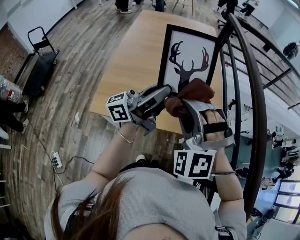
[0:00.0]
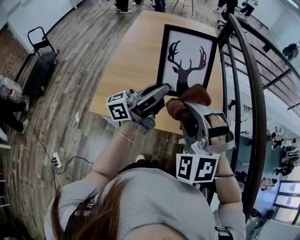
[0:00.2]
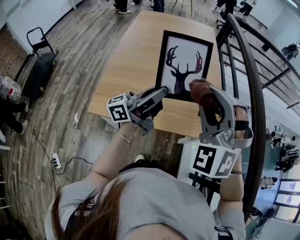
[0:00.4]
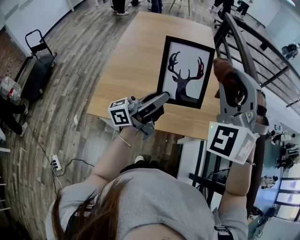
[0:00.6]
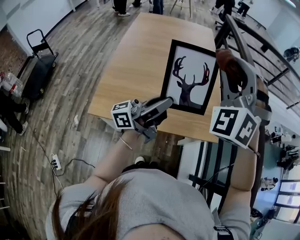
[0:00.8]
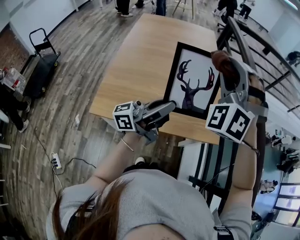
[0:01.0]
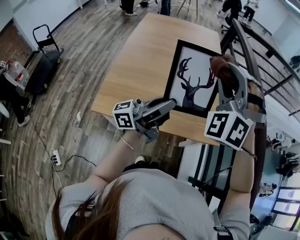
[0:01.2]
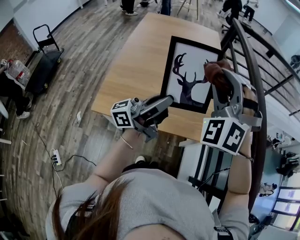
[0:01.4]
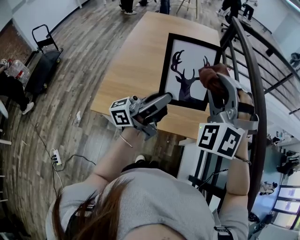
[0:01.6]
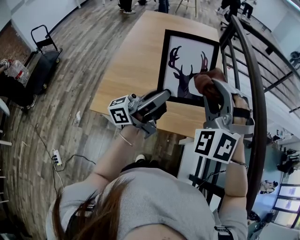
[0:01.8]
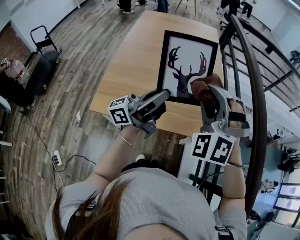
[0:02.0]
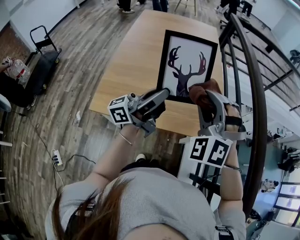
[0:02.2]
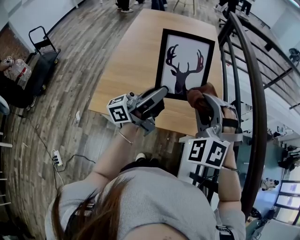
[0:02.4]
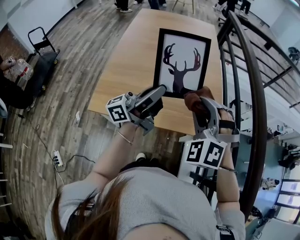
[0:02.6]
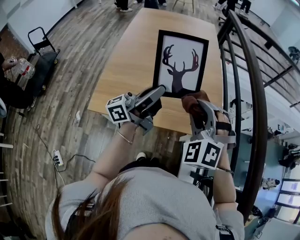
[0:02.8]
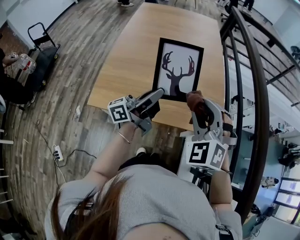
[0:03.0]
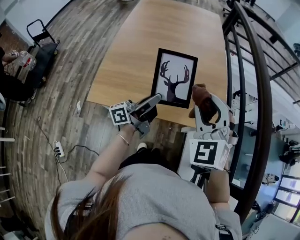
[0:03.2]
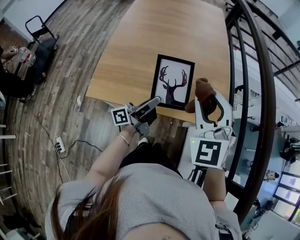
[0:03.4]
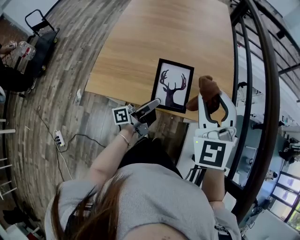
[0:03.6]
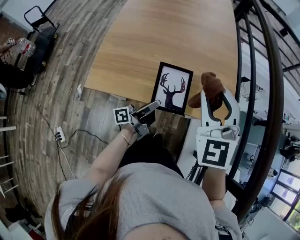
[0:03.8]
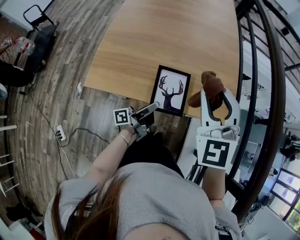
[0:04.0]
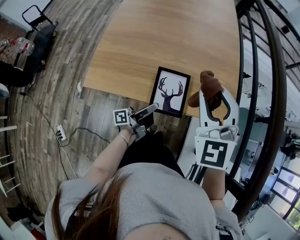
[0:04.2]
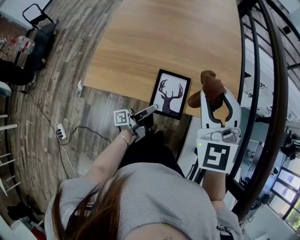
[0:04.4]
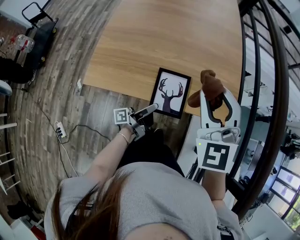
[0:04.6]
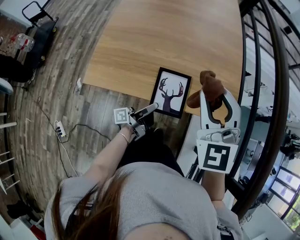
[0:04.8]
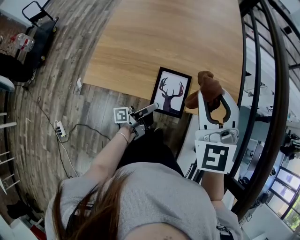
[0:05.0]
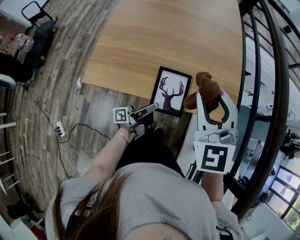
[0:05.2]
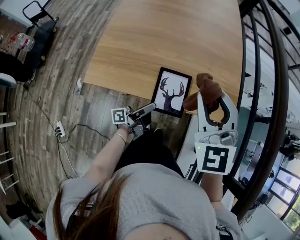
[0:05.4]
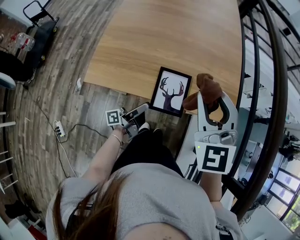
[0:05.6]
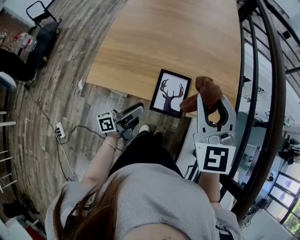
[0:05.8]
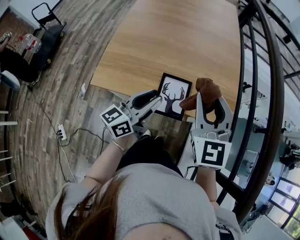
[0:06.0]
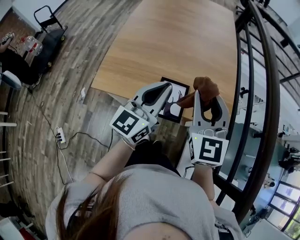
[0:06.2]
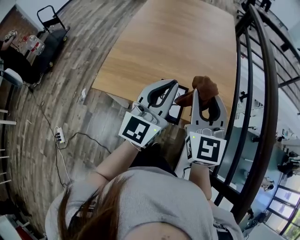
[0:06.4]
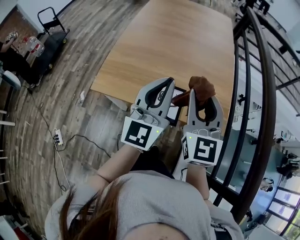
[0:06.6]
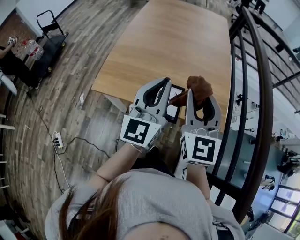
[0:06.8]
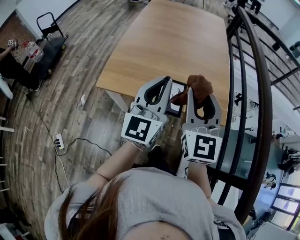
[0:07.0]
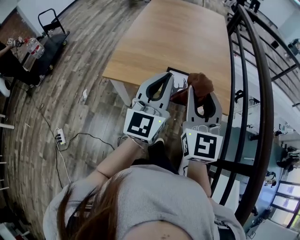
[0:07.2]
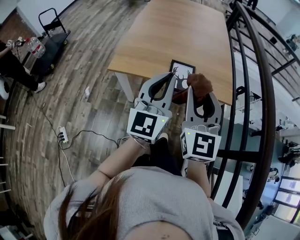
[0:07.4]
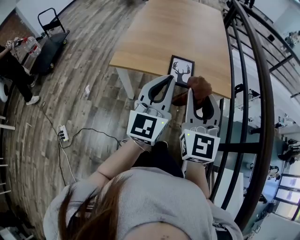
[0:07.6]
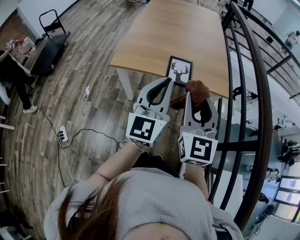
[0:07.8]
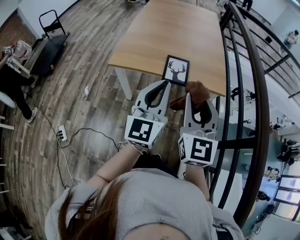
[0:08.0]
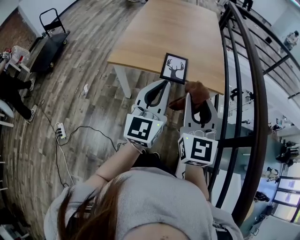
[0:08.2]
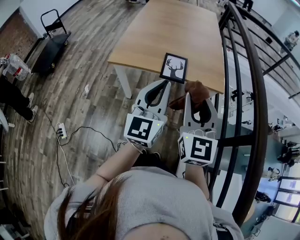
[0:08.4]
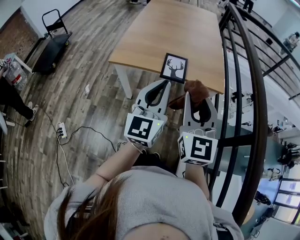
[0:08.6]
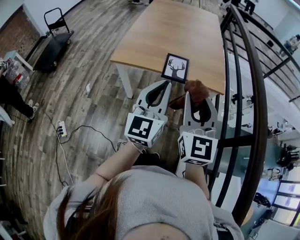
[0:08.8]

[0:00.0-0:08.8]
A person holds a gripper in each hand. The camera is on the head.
0:00.0 to 0:01.4: The right gripper moves forward and upward, approximately 15 cm.
0:01.4 to 0:03.0: The right gripper goes some 15 cm downward and backward, and swivels some 20 degrees; the left gripper travels downward by some 5 cm.
0:03.0 to 0:04.4: The left gripper is displaced downward by some 25 cm, and swivels roughly 40 degrees. The right gripper turns by some 20 degrees.
0:04.4 to 0:05.8: The right gripper rotates some 20 degrees; the left gripper travels to the left by some 5 cm, swivels roughly 20 degrees, and opens its fingers.
0:05.8 to 0:07.4: The right gripper heads backward, covering approximately 20 cm, while the left gripper goes approximately 30 cm upward and backward, rolls clockwise, seen from behind, by approximately 70 degrees, and closes its fingers.
0:07.4 to 0:08.8: The grippers both shift backward by approximately 10 cm.

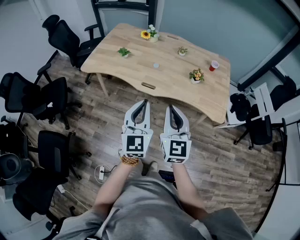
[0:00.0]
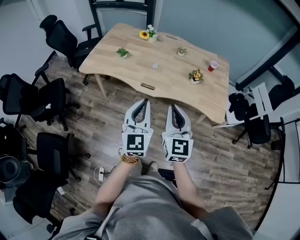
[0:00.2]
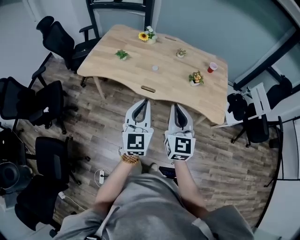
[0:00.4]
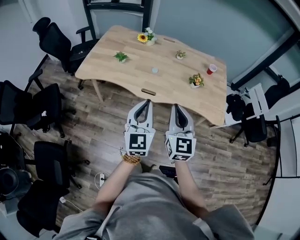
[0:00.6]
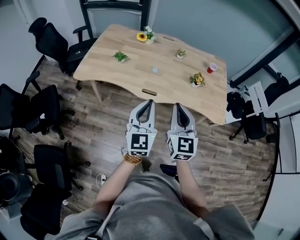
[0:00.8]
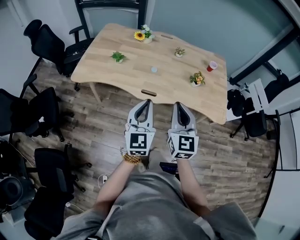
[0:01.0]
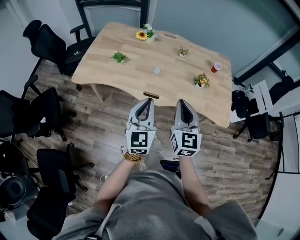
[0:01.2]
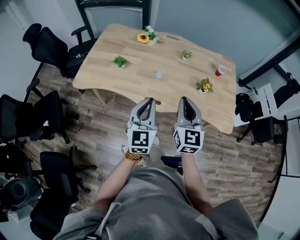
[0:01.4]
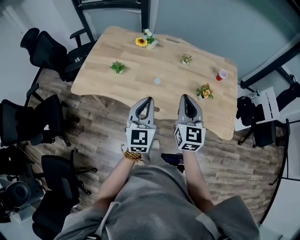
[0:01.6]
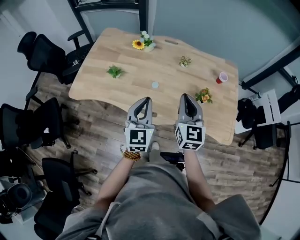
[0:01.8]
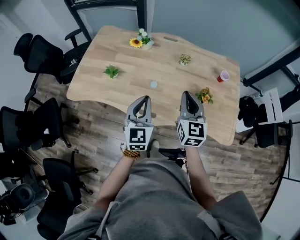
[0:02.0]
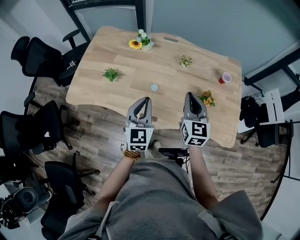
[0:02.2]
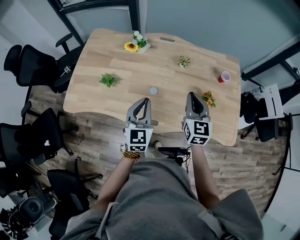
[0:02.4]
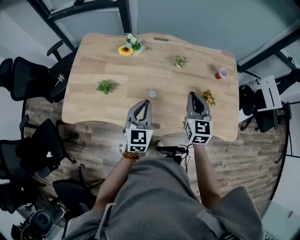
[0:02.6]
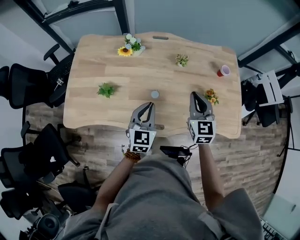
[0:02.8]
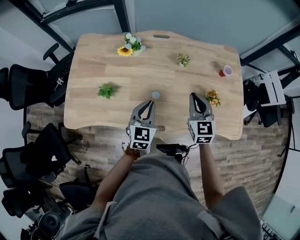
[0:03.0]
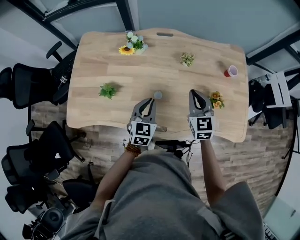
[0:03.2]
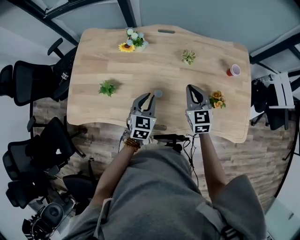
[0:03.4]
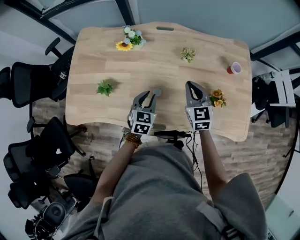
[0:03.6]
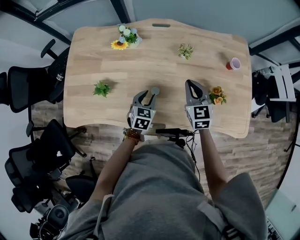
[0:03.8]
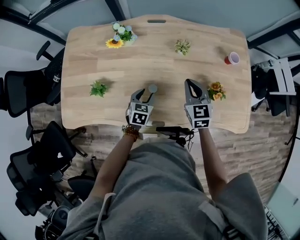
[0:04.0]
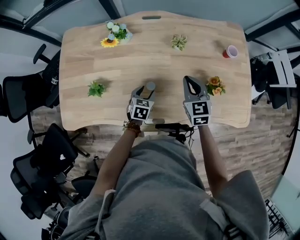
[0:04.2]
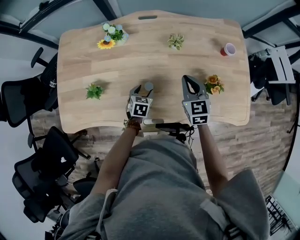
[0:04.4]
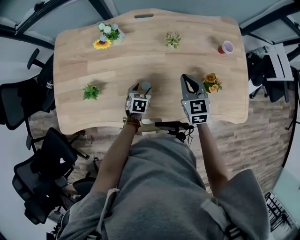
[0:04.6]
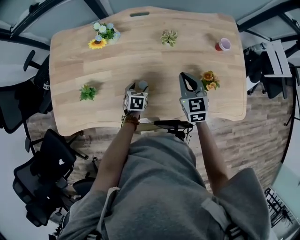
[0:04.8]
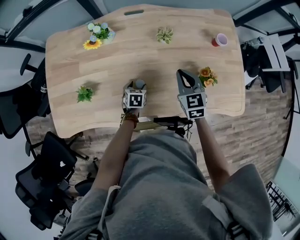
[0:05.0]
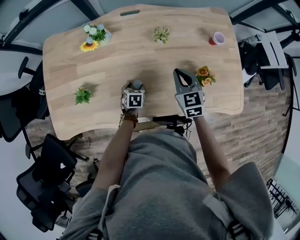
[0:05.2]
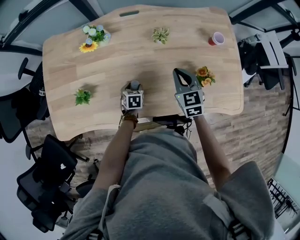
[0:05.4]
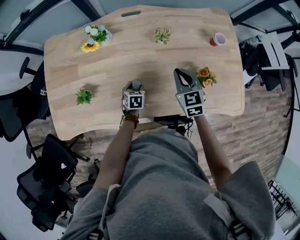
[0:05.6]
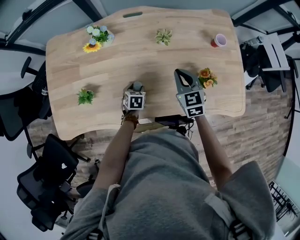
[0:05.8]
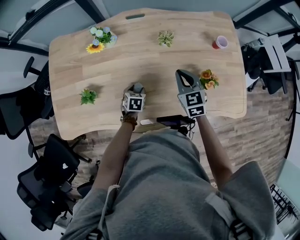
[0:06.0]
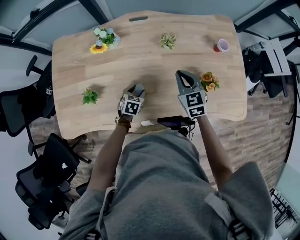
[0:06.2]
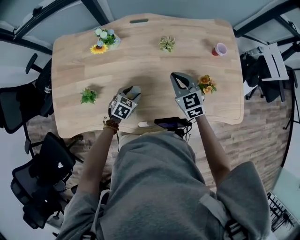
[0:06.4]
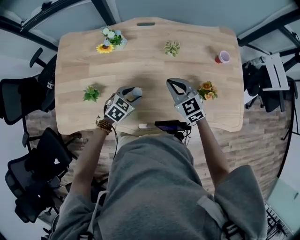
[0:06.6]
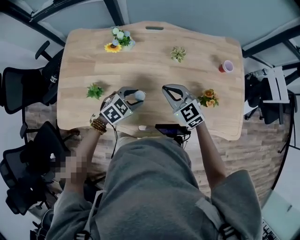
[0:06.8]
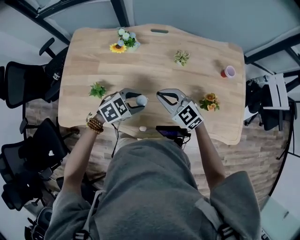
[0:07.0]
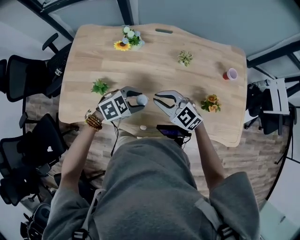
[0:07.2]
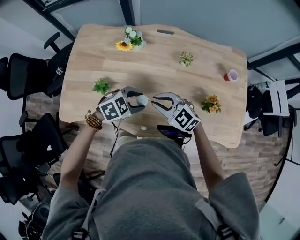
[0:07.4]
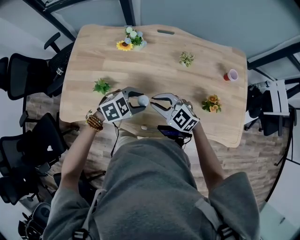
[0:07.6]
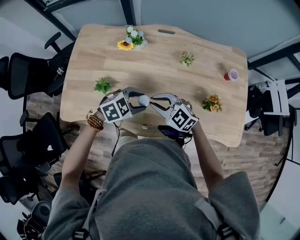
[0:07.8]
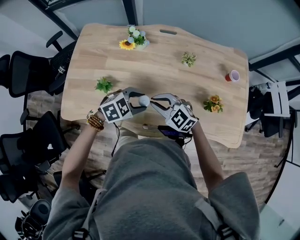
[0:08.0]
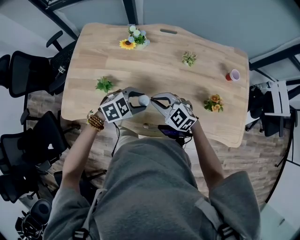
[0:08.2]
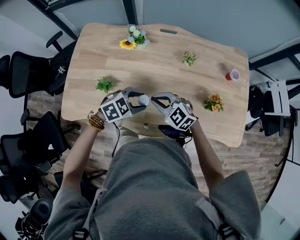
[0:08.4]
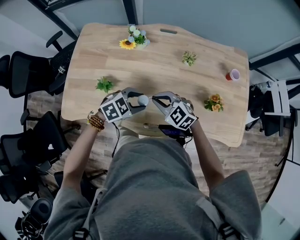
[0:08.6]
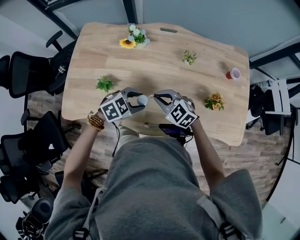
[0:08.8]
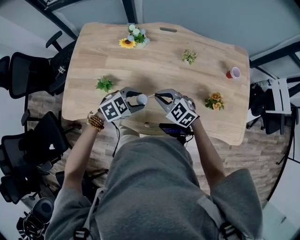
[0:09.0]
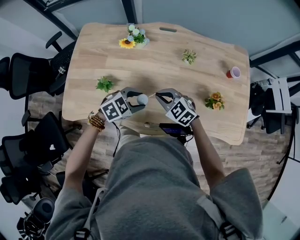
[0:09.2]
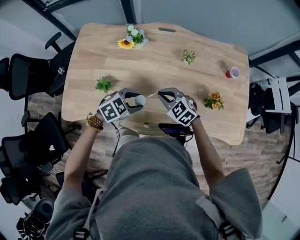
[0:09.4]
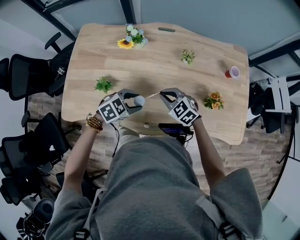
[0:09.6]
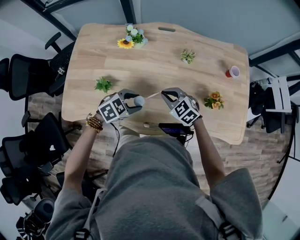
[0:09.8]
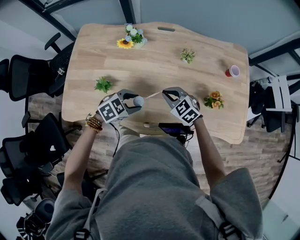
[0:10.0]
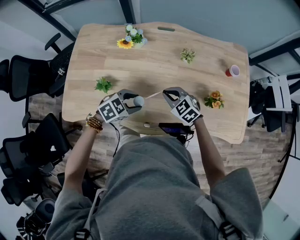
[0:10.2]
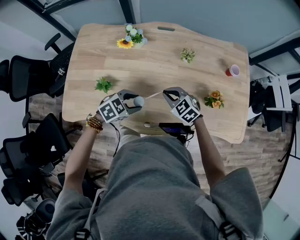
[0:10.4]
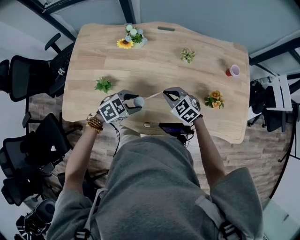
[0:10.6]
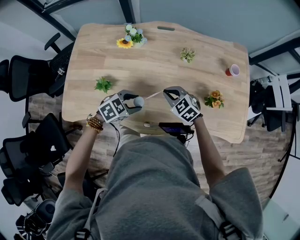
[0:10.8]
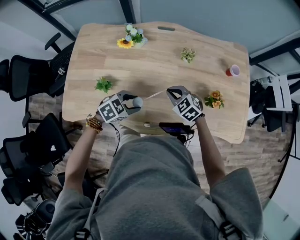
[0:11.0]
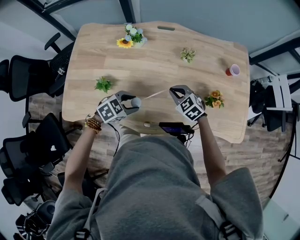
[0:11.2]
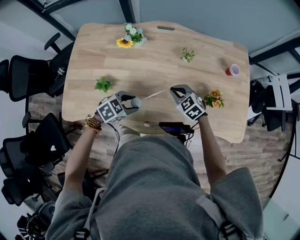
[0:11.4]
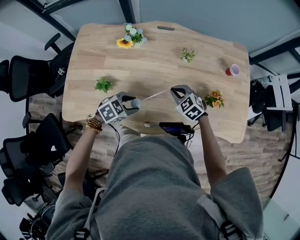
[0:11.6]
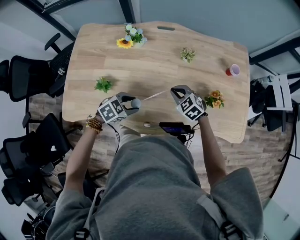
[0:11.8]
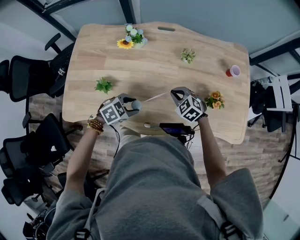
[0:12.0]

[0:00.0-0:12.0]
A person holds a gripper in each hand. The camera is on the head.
0:00.0 to 0:01.6: Both grippers travel together forward, approximately 25 cm.
0:01.6 to 0:03.0: The two grippers go some 25 cm forward and downward. The left gripper turns by about 30 degrees.
0:03.0 to 0:04.4: The right gripper goes some 10 cm downward and forward. The left gripper travels downward by about 20 cm, tips its fingers downward by approximately 30 degrees, and opens its fingers.
0:04.4 to 0:06.0: The grippers stay close to where they were, moving slightly.
0:06.0 to 0:07.6: The left gripper travels upward by some 20 cm, and rotates around the line of its fingers by about 40 degrees, clockwise from behind. The right gripper moves about 20 cm, and turns by about 50 degrees.
0:07.6 to 0:09.0: There are only small adjustments of the grippers.
0:09.0 to 0:10.4: The right gripper shifts by roughly 5 cm.
0:10.4 to 0:12.0: The right gripper moves some 5 cm.

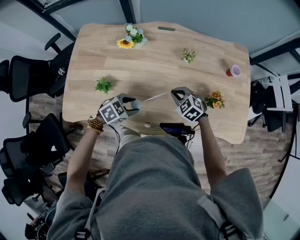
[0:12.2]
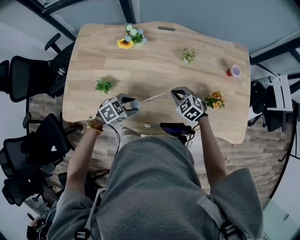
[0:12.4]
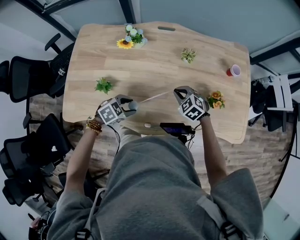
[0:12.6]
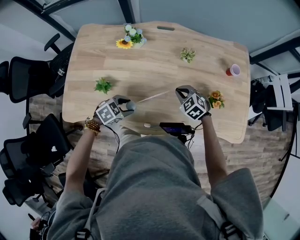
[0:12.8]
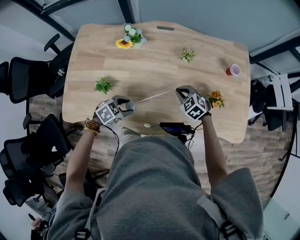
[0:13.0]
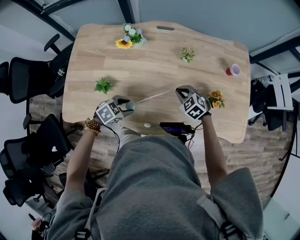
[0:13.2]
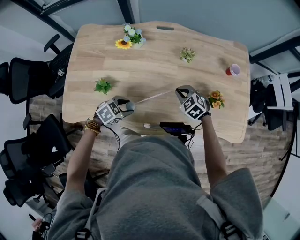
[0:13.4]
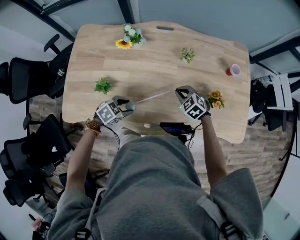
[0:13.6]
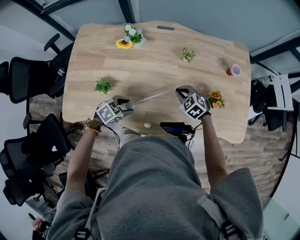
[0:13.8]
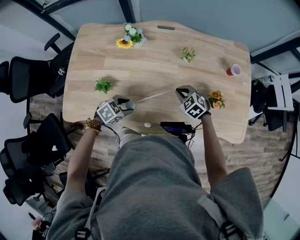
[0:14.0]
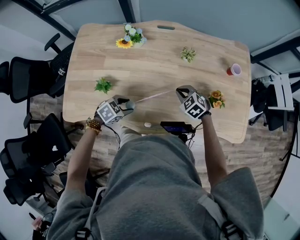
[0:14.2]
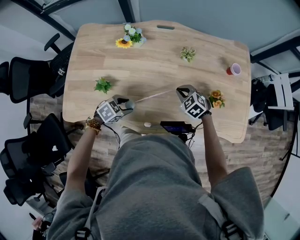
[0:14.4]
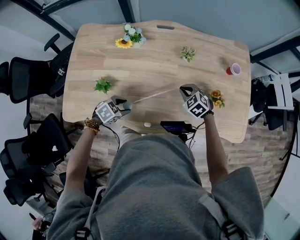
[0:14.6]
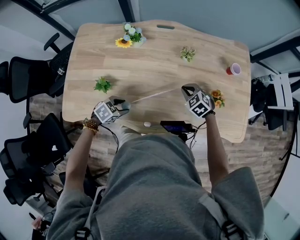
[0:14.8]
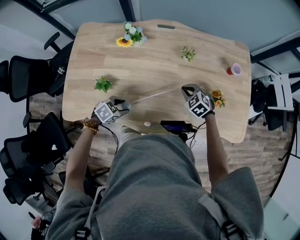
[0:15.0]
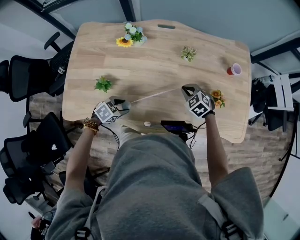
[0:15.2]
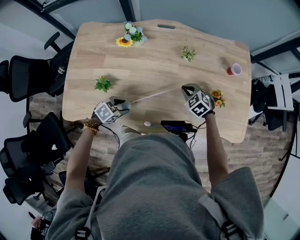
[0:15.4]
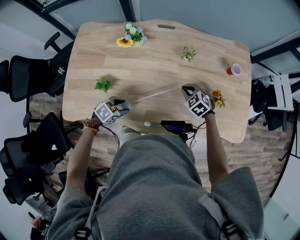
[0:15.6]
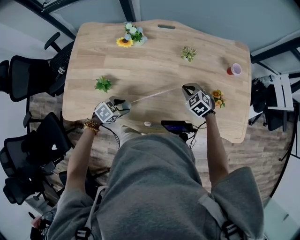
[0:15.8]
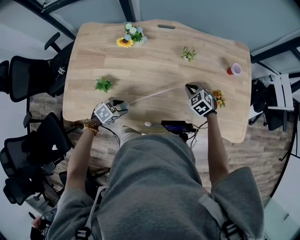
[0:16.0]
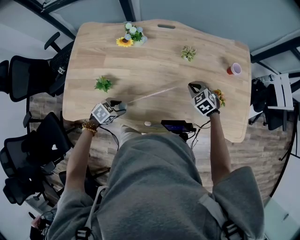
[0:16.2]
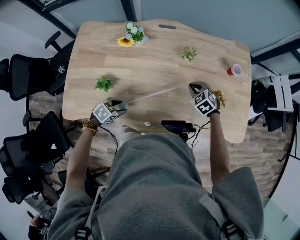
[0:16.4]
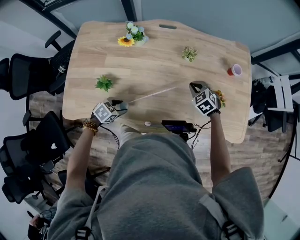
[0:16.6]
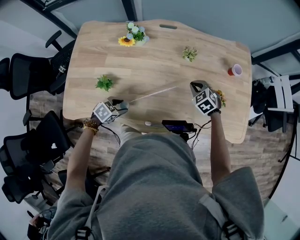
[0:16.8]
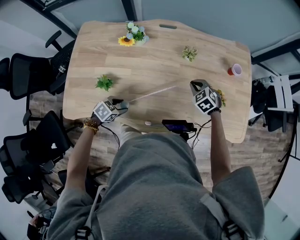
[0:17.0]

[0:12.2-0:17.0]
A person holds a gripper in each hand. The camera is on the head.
0:12.2 to 0:13.8: There are only small adjustments of the grippers.
0:13.8 to 0:15.4: The grippers move only a little.
0:15.4 to 0:17.0: There are only small adjustments of the grippers.
